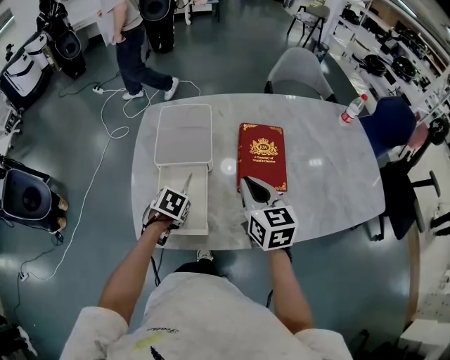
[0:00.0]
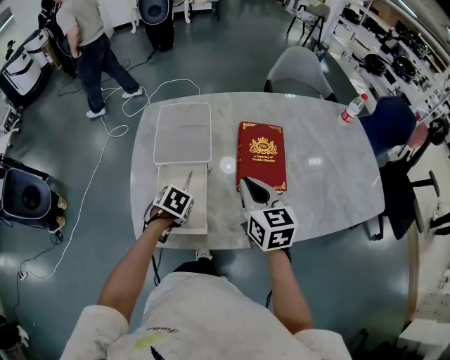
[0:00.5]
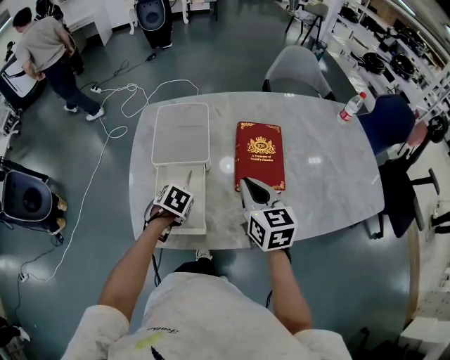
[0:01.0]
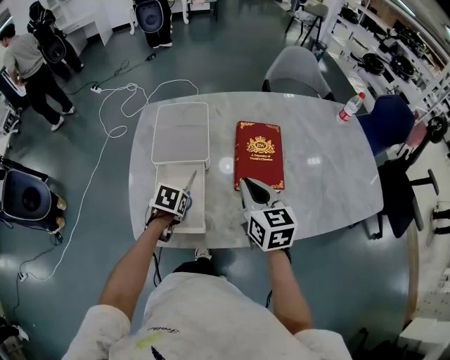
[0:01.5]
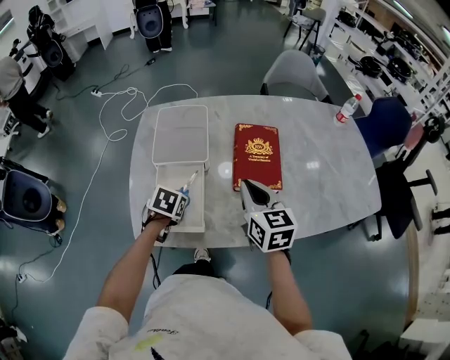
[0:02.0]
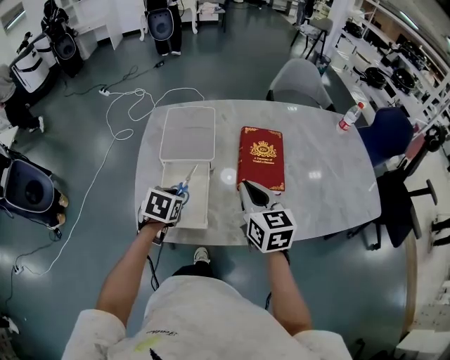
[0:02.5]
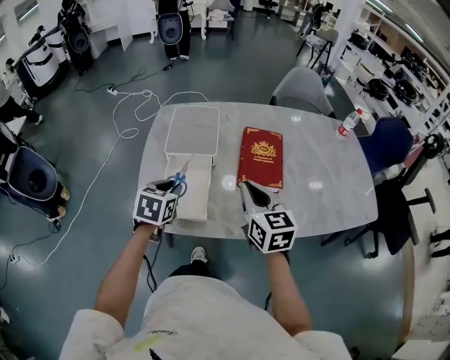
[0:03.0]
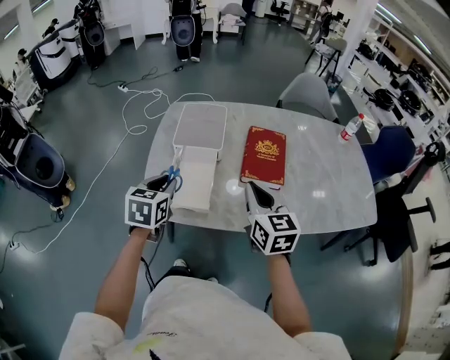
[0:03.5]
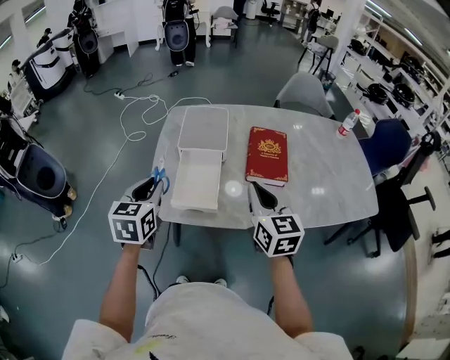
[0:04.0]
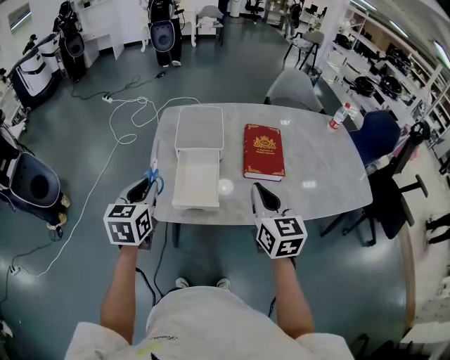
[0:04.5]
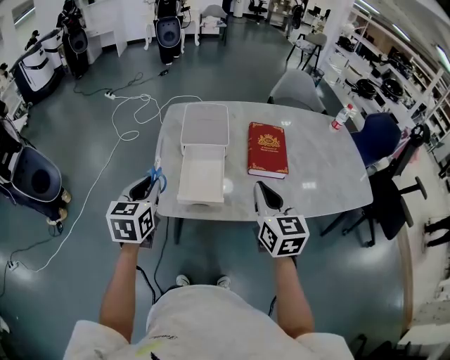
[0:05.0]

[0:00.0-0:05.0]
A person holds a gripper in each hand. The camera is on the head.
0:00.0 to 0:02.5: The left gripper heads upward, covering about 5 cm.
0:02.5 to 0:05.0: The left gripper moves upward, to the left and backward, roughly 25 cm, and points its fingers approximately 30 degrees further upward. The right gripper travels backward and upward by roughly 15 cm.

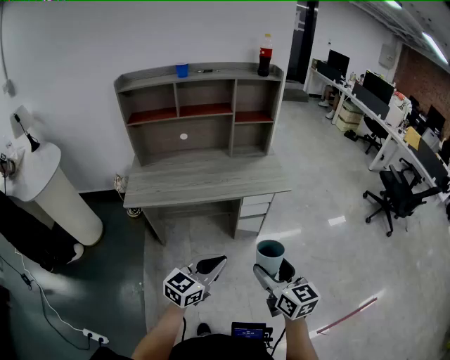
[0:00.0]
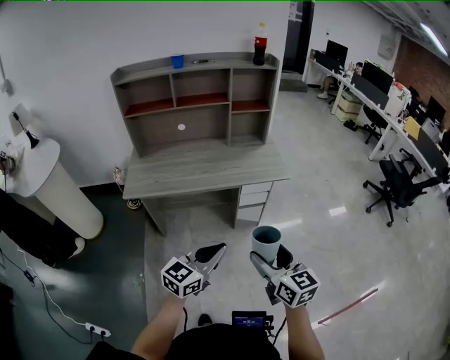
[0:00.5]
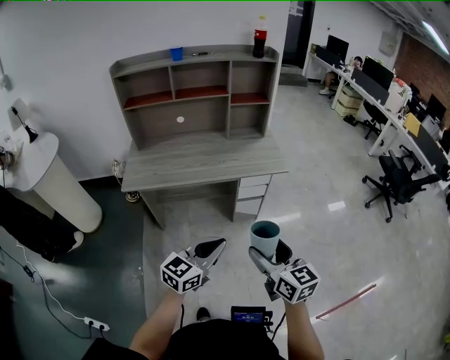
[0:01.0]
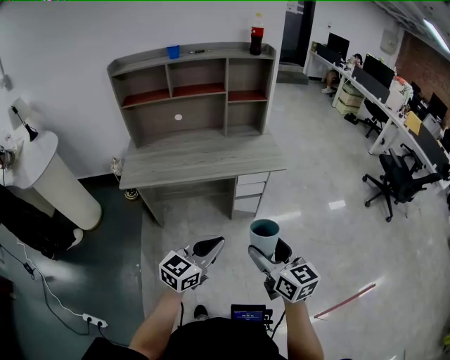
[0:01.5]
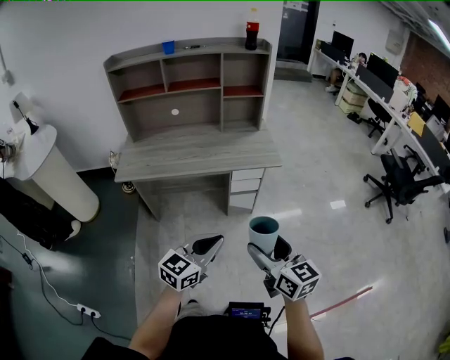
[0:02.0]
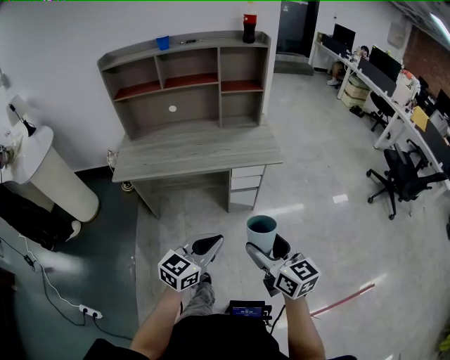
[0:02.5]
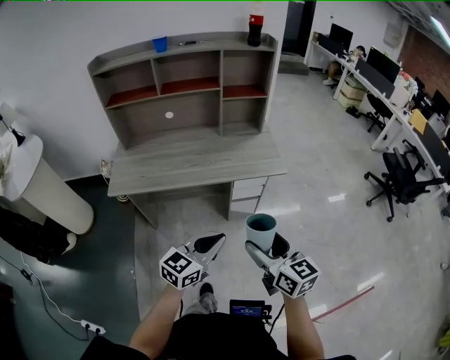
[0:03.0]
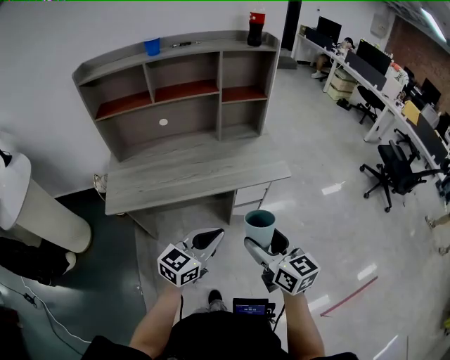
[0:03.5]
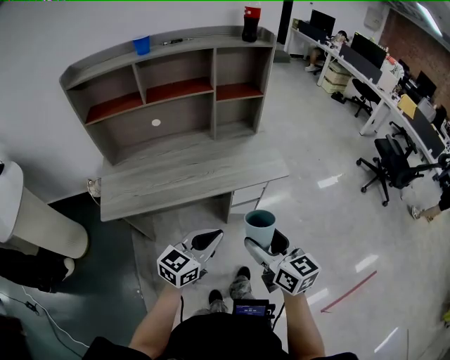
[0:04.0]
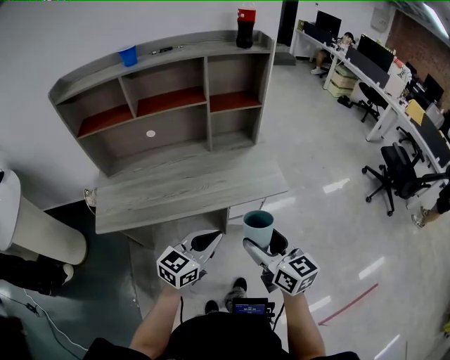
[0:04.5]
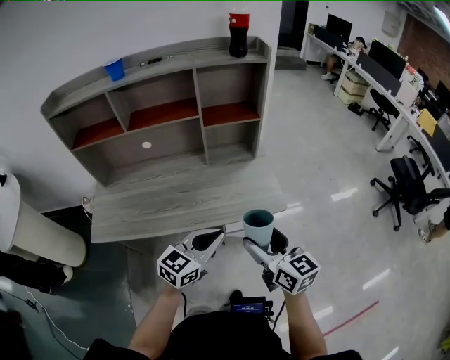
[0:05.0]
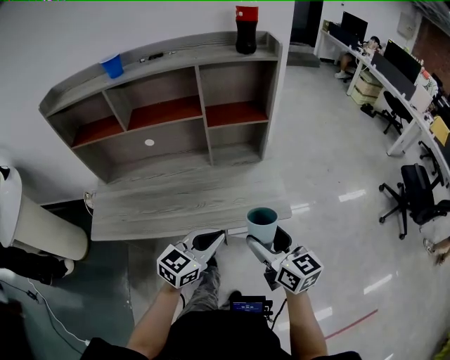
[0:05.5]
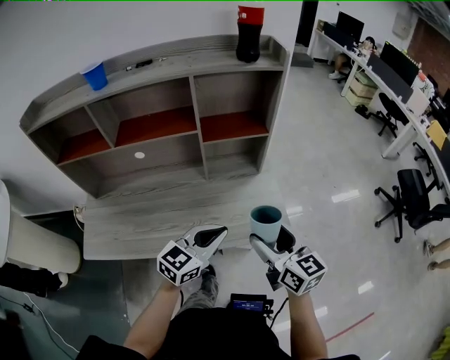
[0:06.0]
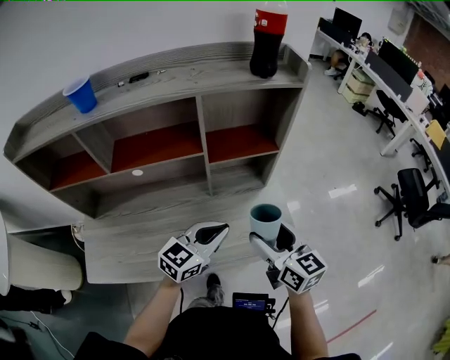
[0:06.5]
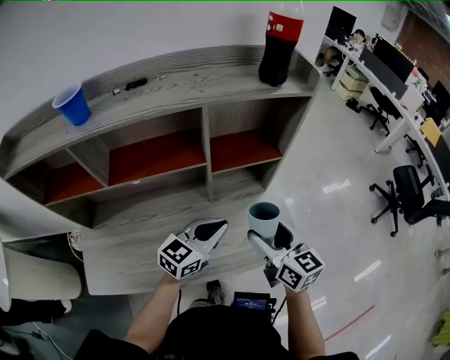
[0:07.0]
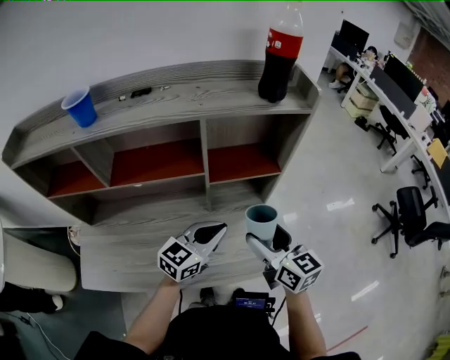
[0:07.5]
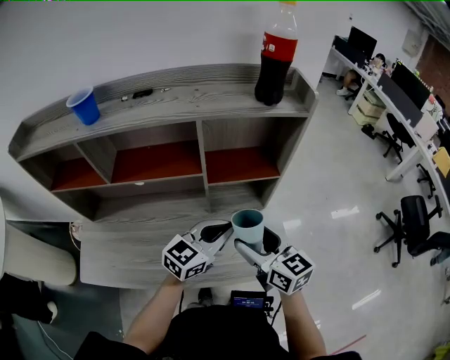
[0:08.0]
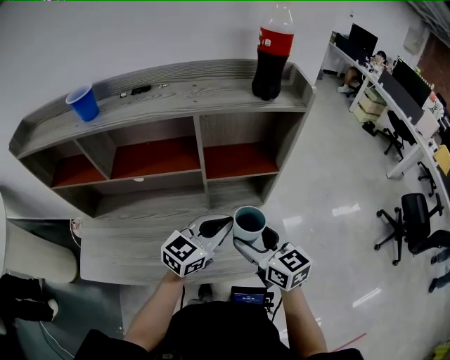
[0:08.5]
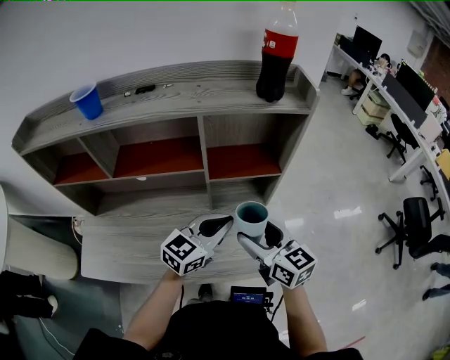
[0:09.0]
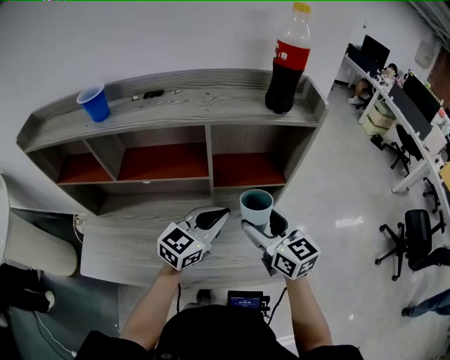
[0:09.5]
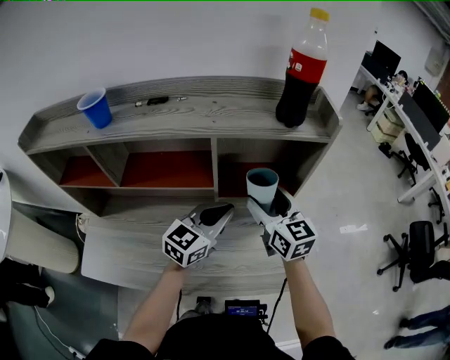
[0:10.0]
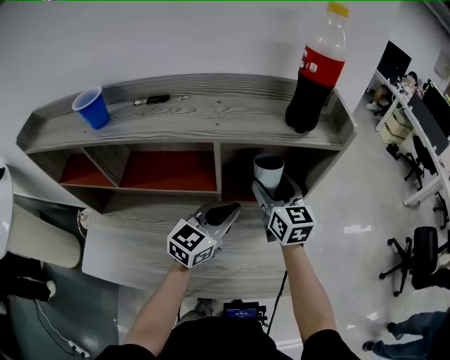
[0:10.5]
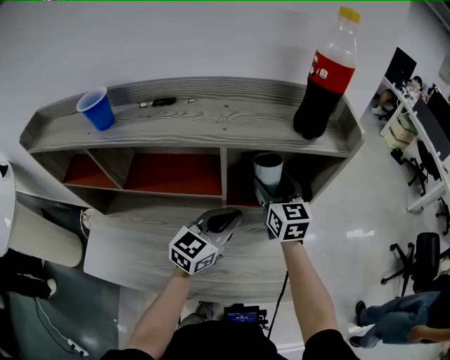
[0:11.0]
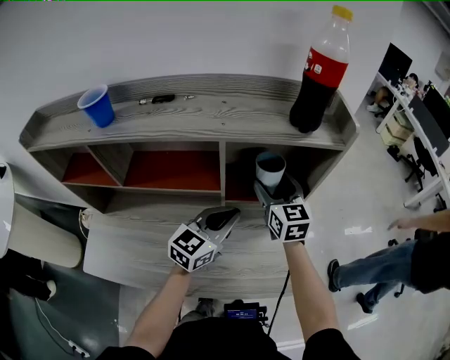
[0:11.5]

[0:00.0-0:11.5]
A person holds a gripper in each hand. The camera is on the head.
0:00.0 to 0:02.0: Both grippers move to the right, some 10 cm.
0:02.0 to 0:04.0: Both grippers move forward and to the left, roughly 20 cm.
0:04.0 to 0:06.0: Both grippers travel together forward, some 30 cm.
0:06.0 to 0:07.5: Both grippers travel together forward and to the left, about 15 cm.
0:07.5 to 0:09.5: The right gripper changes place by about 5 cm, while the left gripper moves upward, approximately 5 cm.
0:09.5 to 0:11.5: The right gripper travels forward by roughly 15 cm. Meanwhile the left gripper is displaced forward by approximately 5 cm.

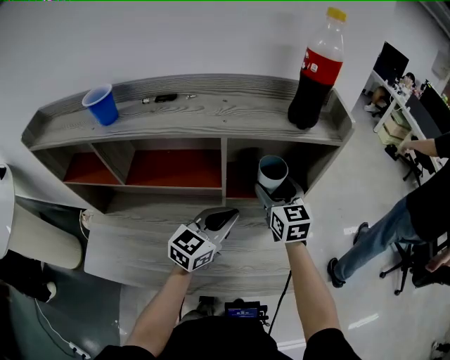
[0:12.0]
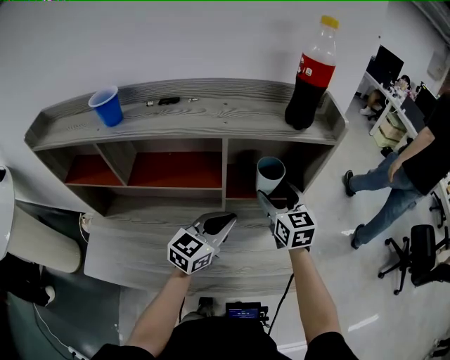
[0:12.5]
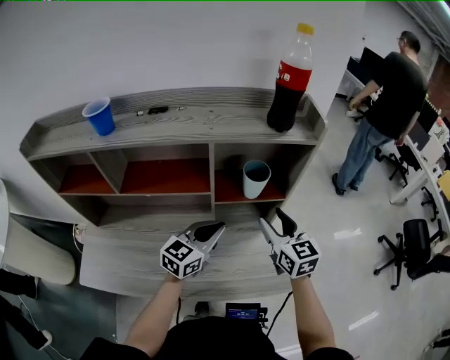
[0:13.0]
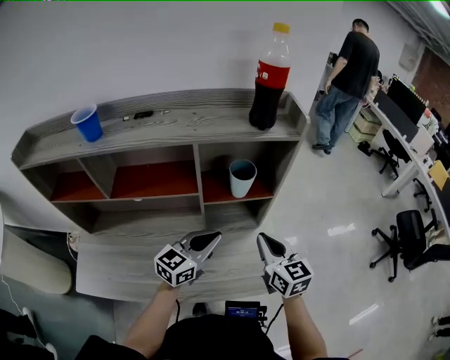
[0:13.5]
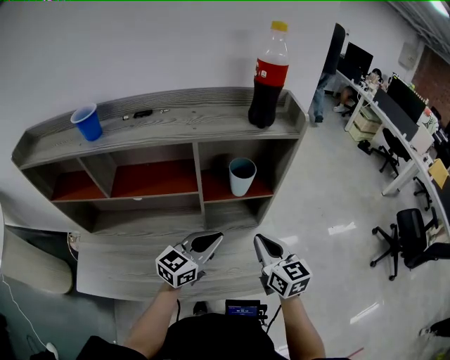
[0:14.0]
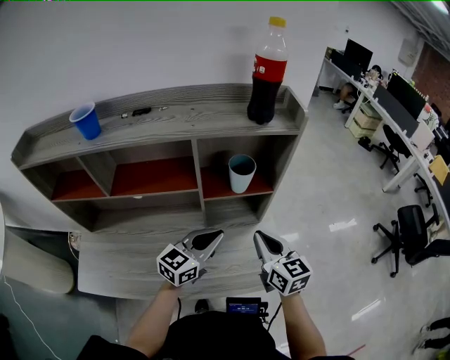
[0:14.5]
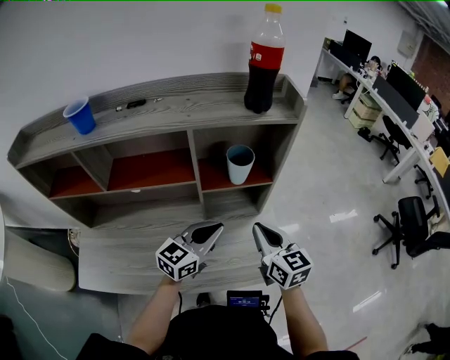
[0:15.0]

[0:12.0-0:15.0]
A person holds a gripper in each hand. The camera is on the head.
0:12.0 to 0:13.5: The left gripper travels backward by some 5 cm; the right gripper shifts roughly 20 cm backward and to the right, and closes its fingers.
0:13.5 to 0:15.0: Neither gripper changes place.

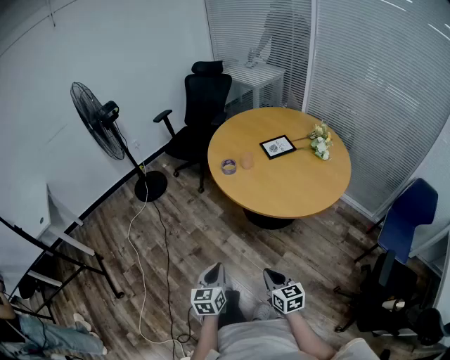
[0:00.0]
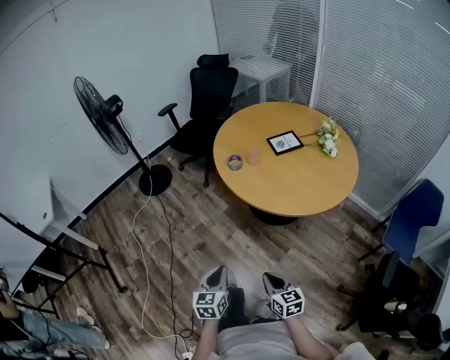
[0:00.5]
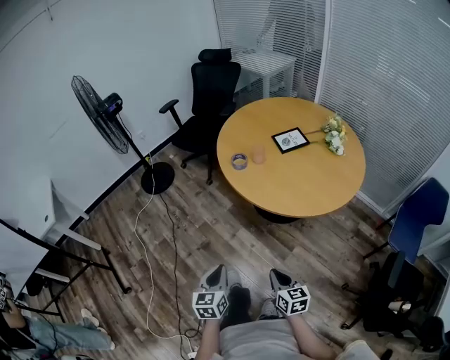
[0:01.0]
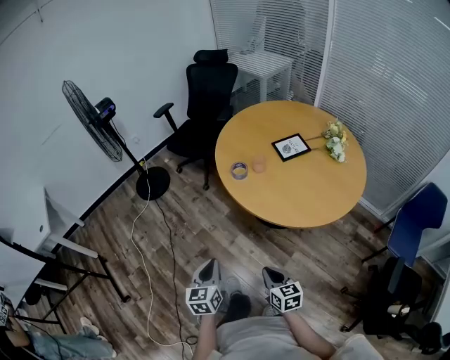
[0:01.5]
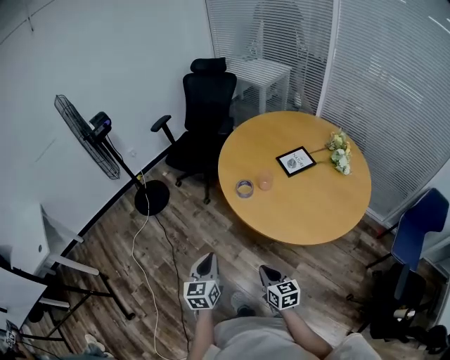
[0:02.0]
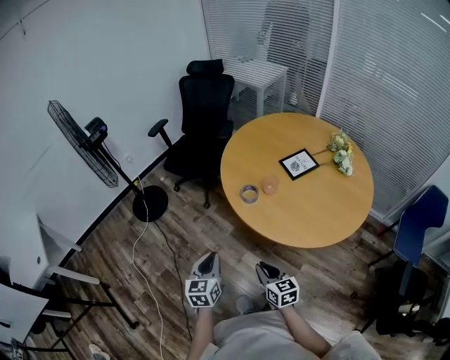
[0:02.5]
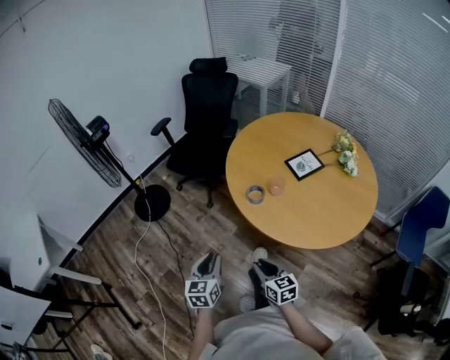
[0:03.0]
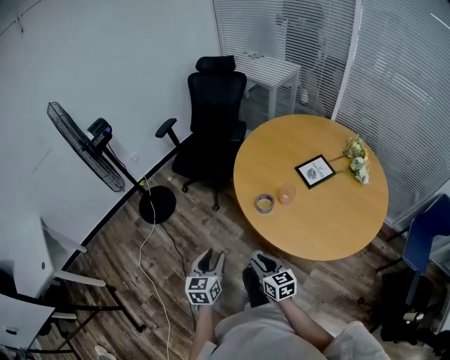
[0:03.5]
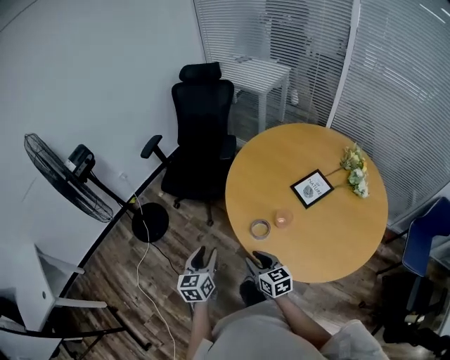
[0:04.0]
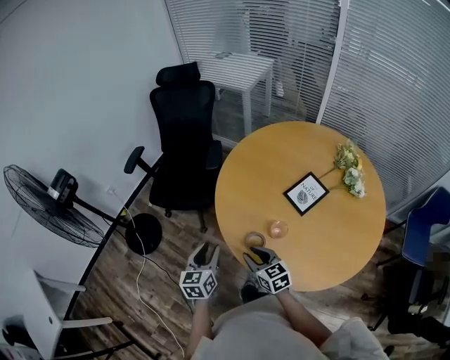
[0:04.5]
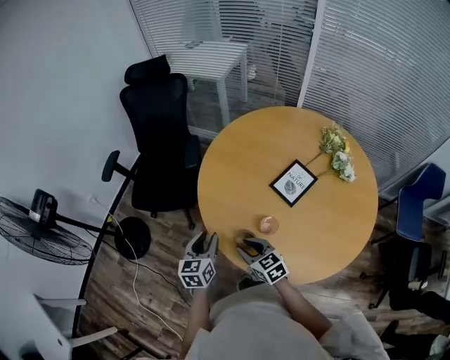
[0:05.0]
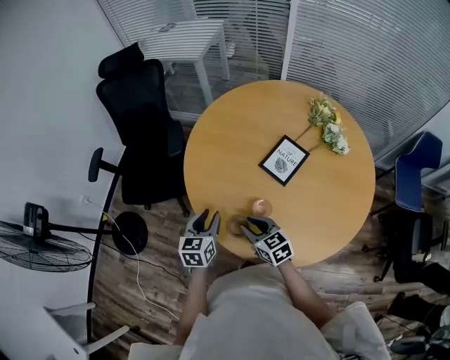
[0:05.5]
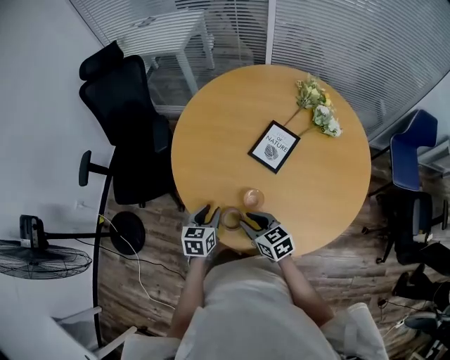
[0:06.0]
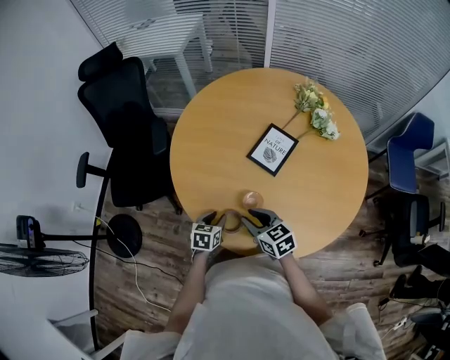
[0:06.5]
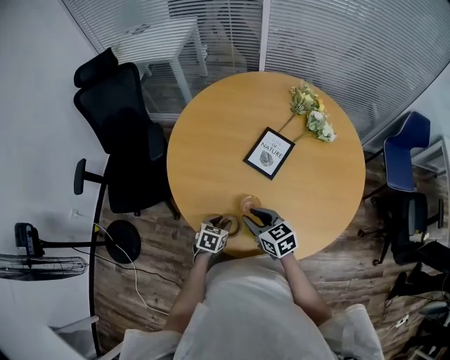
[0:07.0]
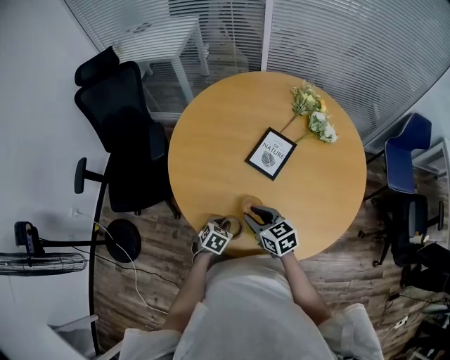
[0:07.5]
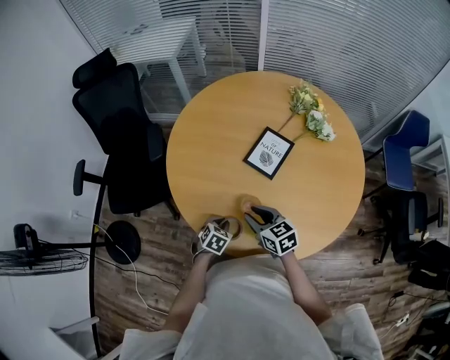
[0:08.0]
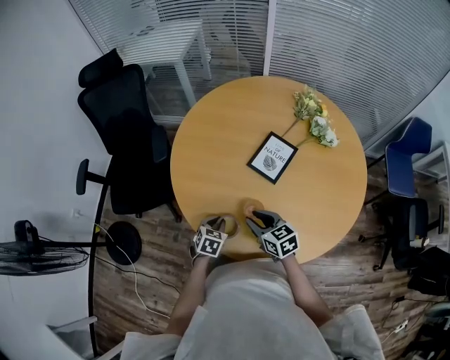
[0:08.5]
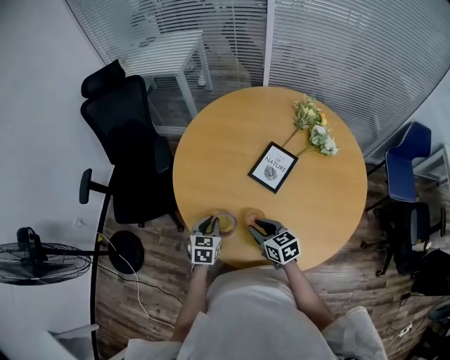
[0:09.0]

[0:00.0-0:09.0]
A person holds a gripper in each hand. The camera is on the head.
0:00.0 to 0:02.0: The two grippers go about 25 cm forward.
0:02.0 to 0:04.5: The two grippers go some 40 cm forward. The right gripper opens, while the left gripper opens.
0:04.5 to 0:07.0: The right gripper changes place by roughly 15 cm; the left gripper heads downward, covering roughly 20 cm, and angles its fingers downward, by about 30 degrees.
0:07.0 to 0:09.0: The left gripper is displaced upward and forward by some 10 cm, swivels roughly 20 degrees, and closes its fingers.
